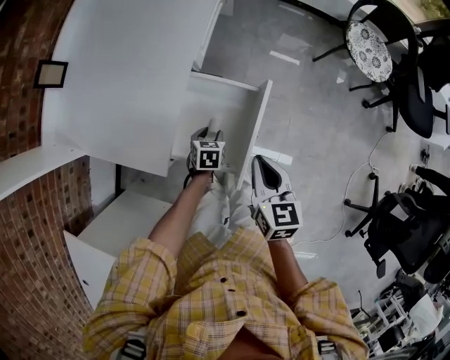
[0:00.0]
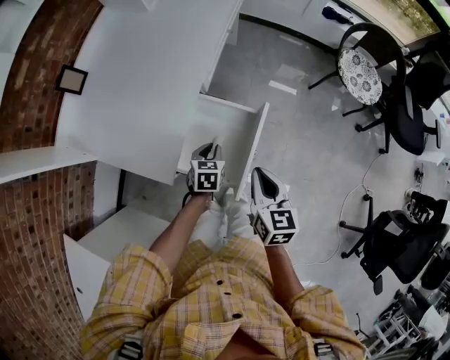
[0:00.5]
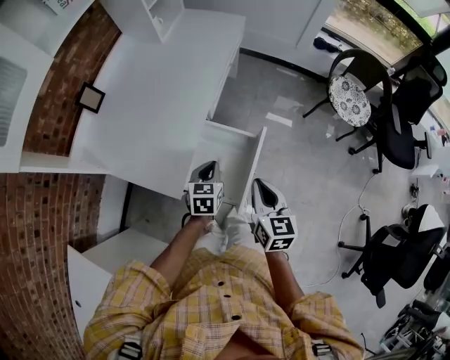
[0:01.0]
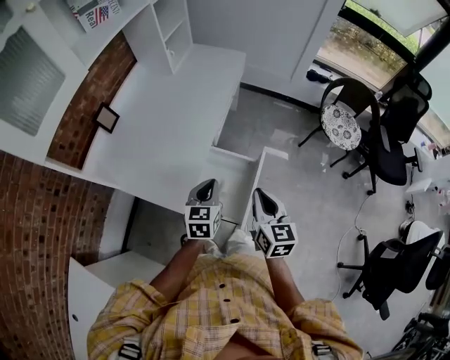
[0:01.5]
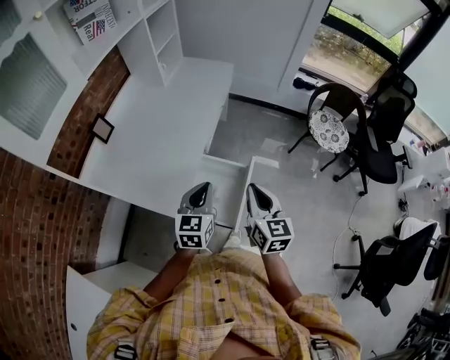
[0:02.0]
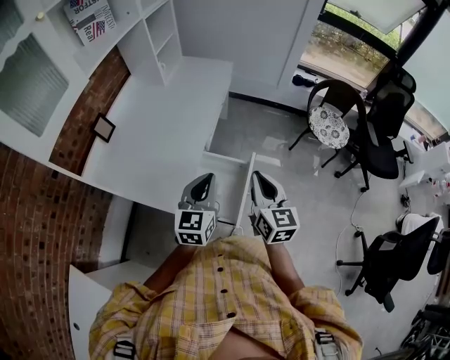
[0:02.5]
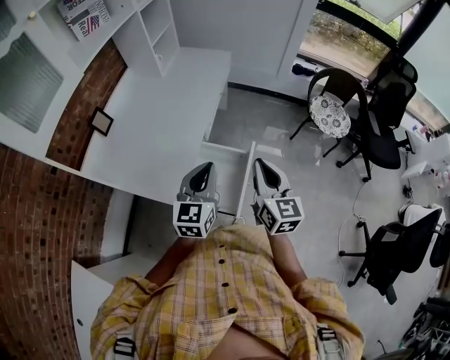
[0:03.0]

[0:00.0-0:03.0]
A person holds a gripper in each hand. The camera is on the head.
0:00.0 to 0:01.5: The right gripper moves upward, about 15 cm; the left gripper moves upward, roughly 35 cm, tips its fingers upward by roughly 30 degrees, and closes up.
0:01.5 to 0:03.0: The right gripper travels upward by some 10 cm. Meanwhile the left gripper is displaced upward by roughly 10 cm.

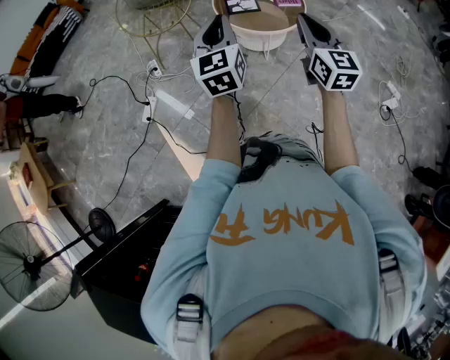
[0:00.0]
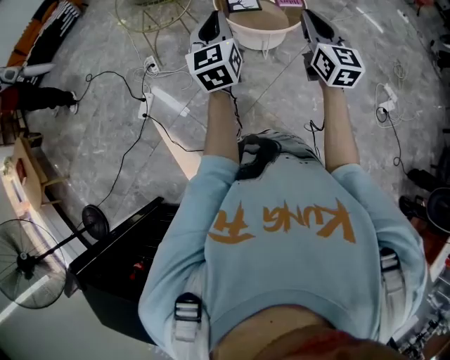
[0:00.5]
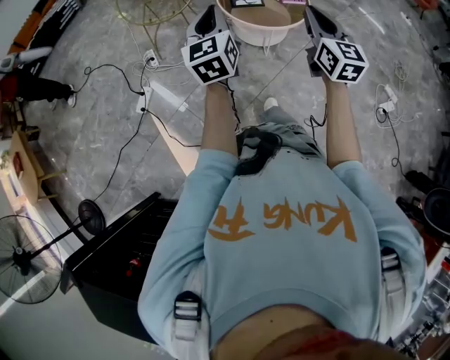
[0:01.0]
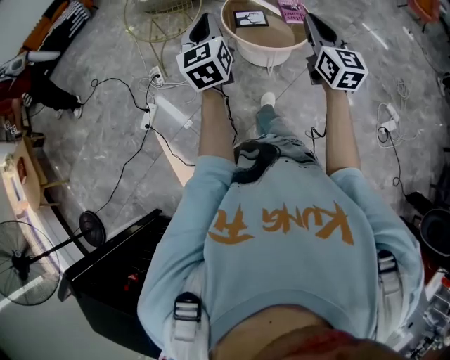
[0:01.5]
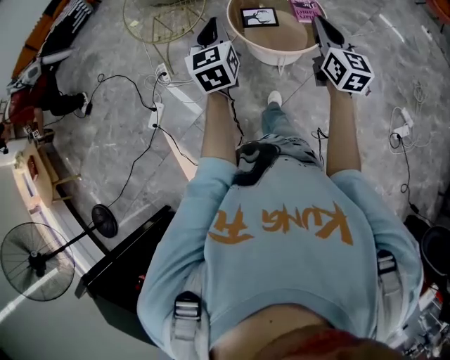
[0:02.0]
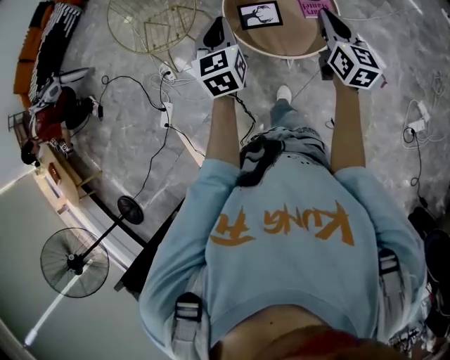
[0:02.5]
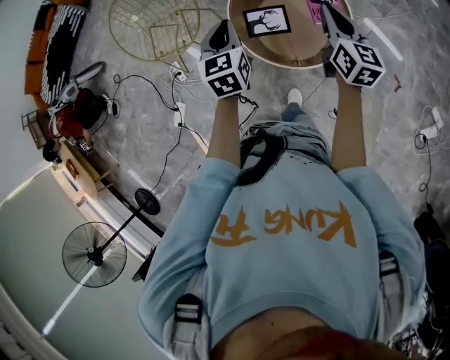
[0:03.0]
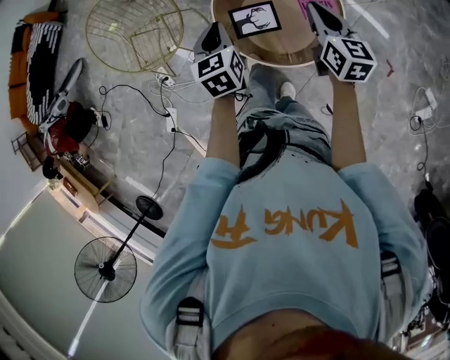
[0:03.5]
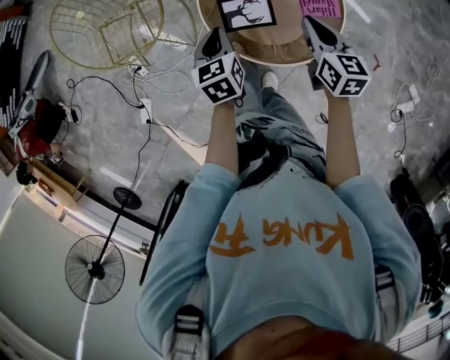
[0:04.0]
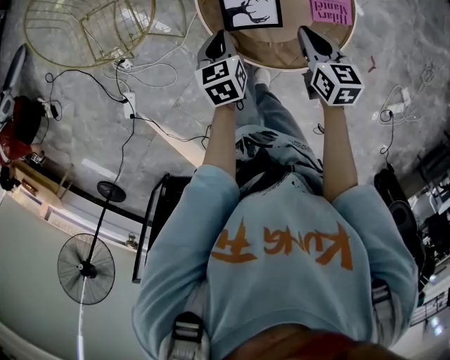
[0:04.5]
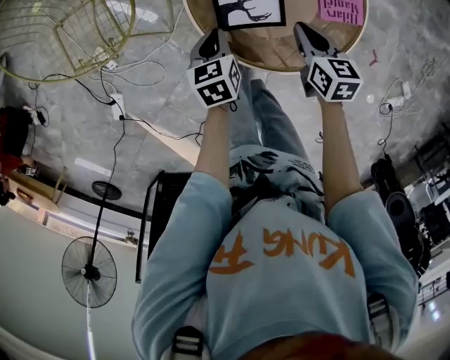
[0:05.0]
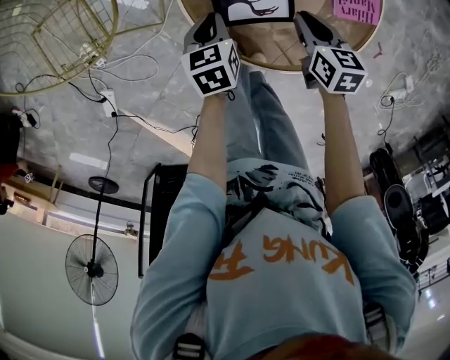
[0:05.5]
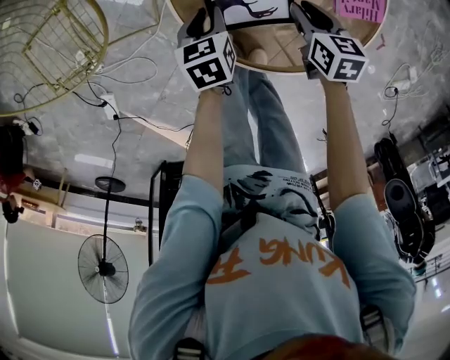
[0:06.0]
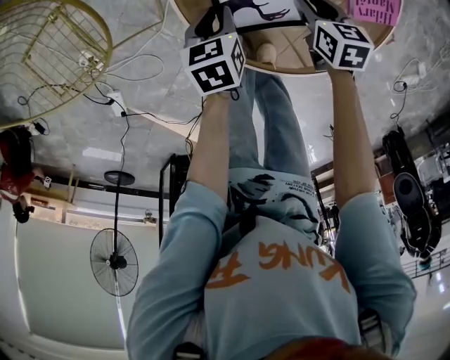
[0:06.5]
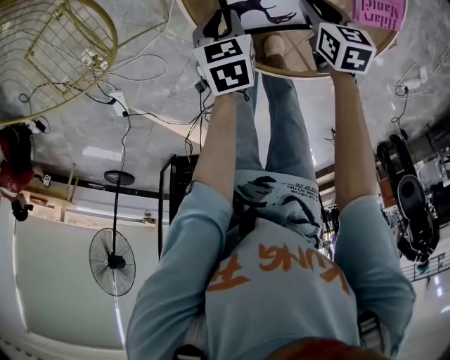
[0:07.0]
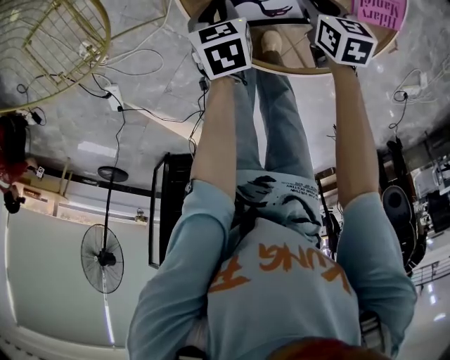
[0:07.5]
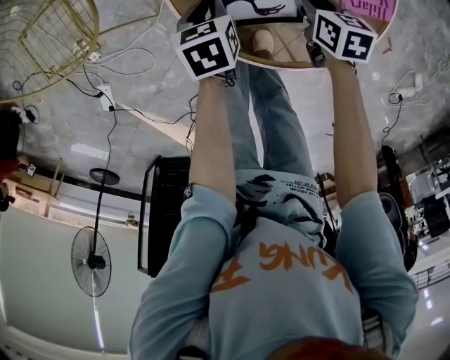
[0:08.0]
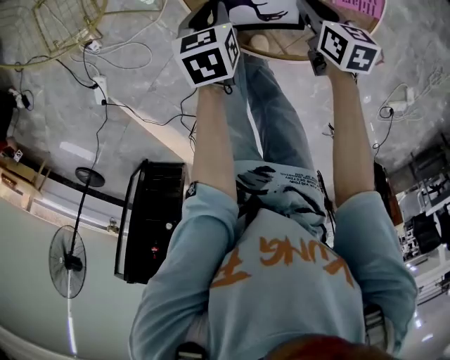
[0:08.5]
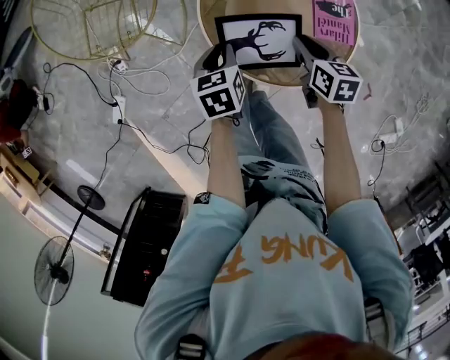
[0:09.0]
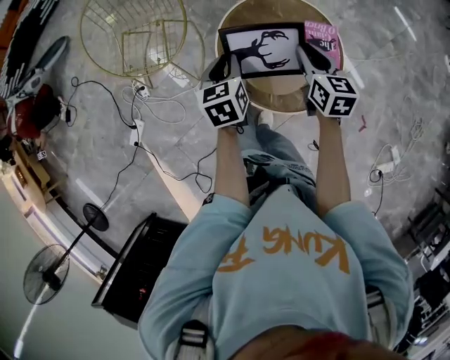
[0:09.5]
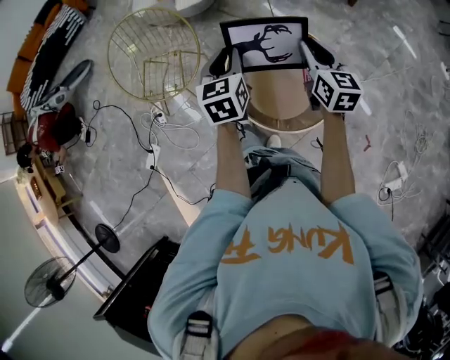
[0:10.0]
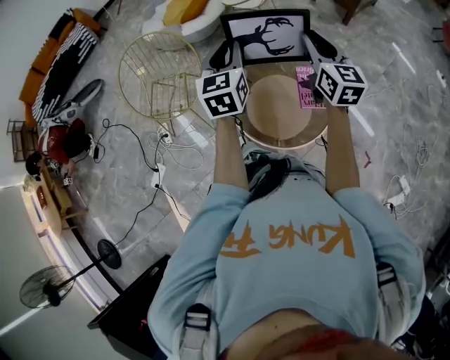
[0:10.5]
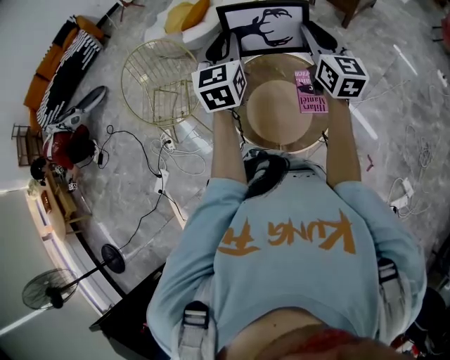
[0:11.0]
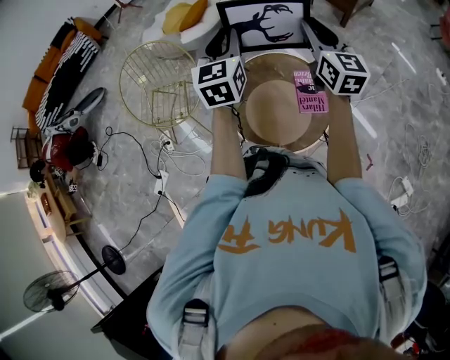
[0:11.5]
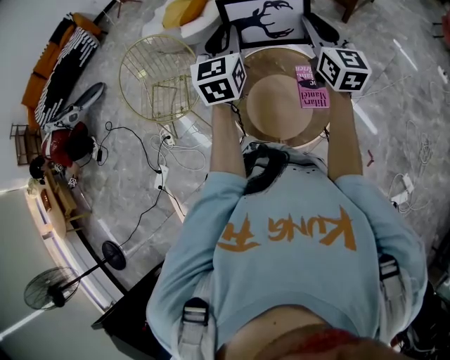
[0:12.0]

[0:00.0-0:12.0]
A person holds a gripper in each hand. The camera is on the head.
0:00.0 to 0:02.0: Both grippers move forward, approximately 15 cm.
0:02.0 to 0:04.0: Both grippers move forward and downward, approximately 35 cm. The right gripper swivels some 30 degrees, while the left gripper changes its angle by approximately 30 degrees.
0:04.0 to 0:06.0: The two grippers go roughly 25 cm downward. The left gripper rotates some 20 degrees. Meanwhile the right gripper changes its angle by approximately 30 degrees, and opens.
0:06.0 to 0:08.0: The grippers make only small movements.
0:08.0 to 0:10.0: Both grippers move upward, roughly 40 cm. The left gripper tilts its fingers approximately 40 degrees upward. The right gripper tips its fingers upward by approximately 40 degrees.
0:10.0 to 0:12.0: The two grippers go some 15 cm upward and to the right.

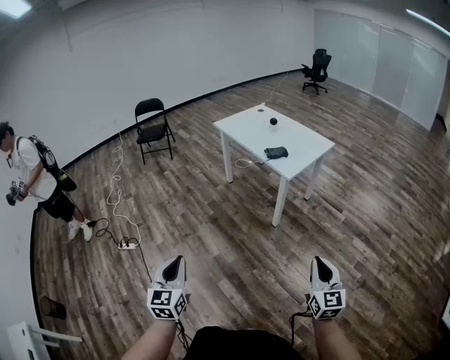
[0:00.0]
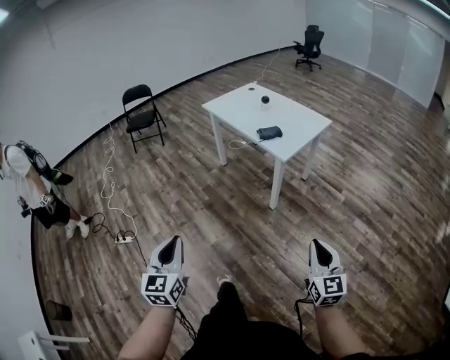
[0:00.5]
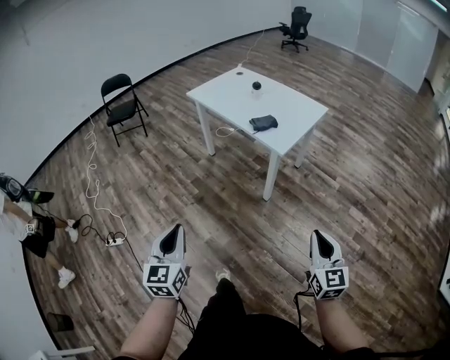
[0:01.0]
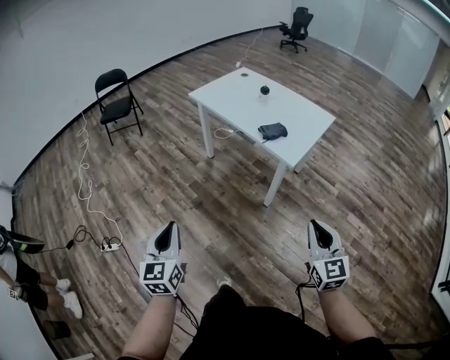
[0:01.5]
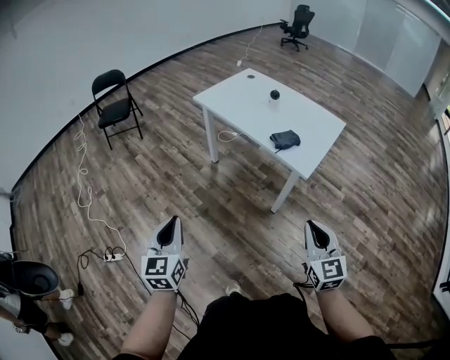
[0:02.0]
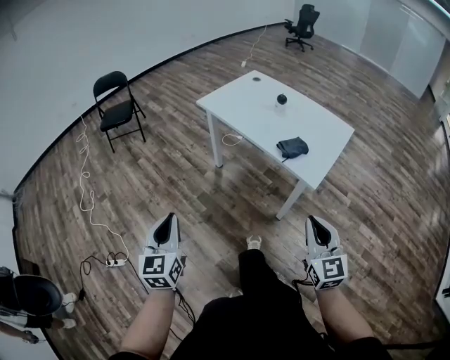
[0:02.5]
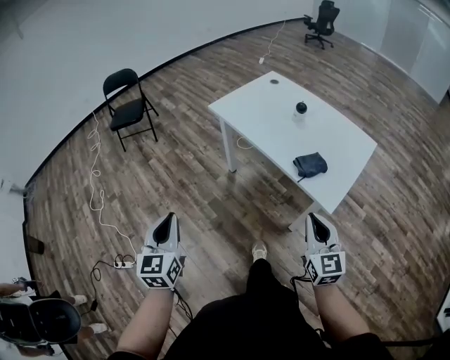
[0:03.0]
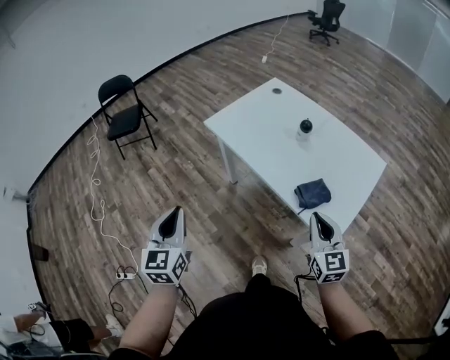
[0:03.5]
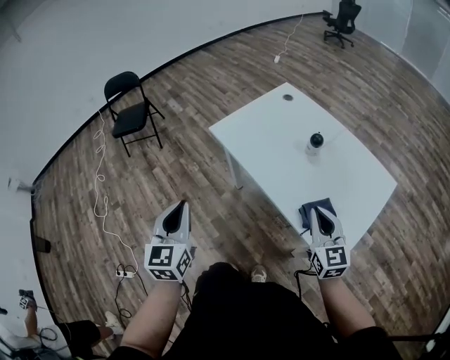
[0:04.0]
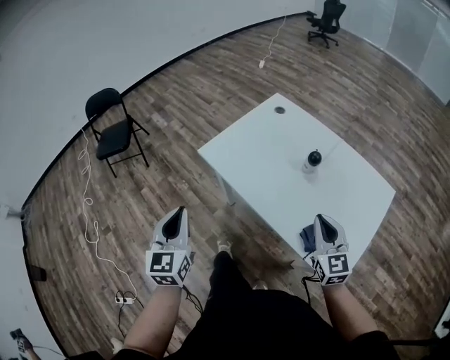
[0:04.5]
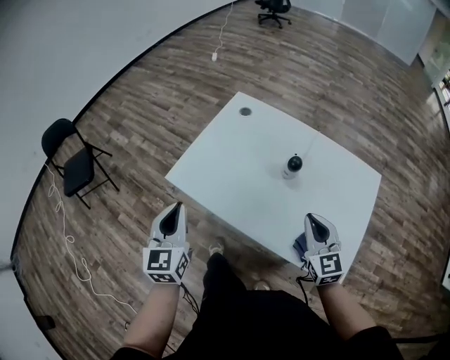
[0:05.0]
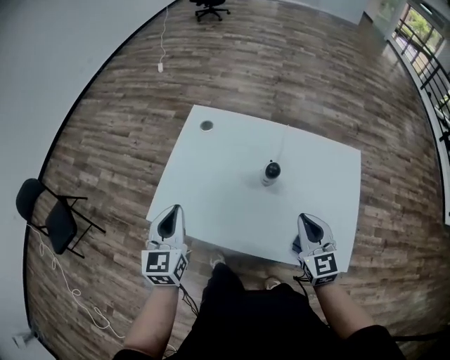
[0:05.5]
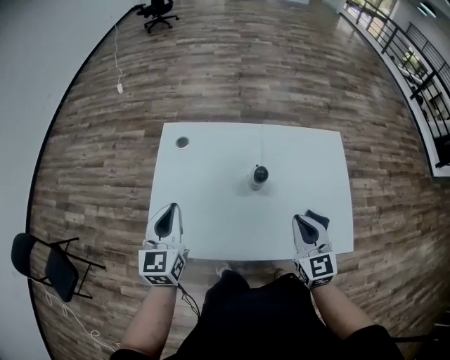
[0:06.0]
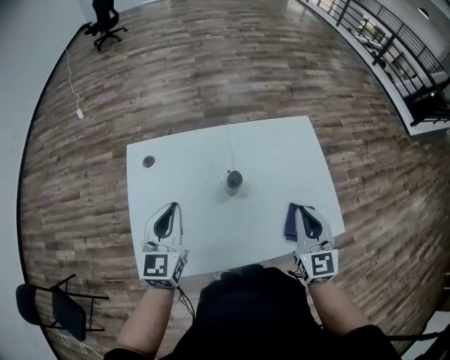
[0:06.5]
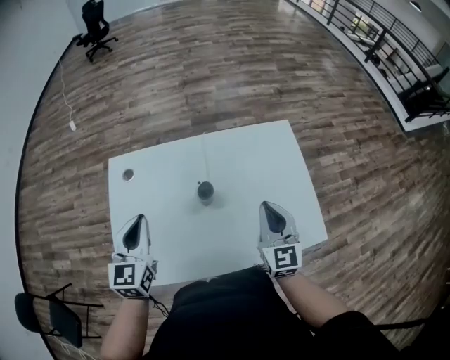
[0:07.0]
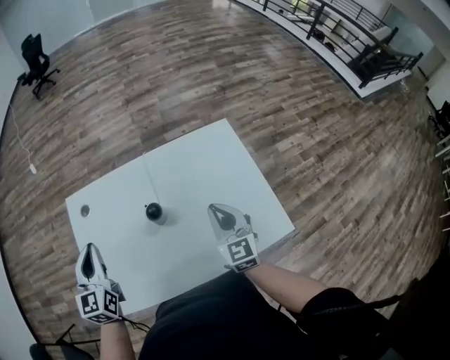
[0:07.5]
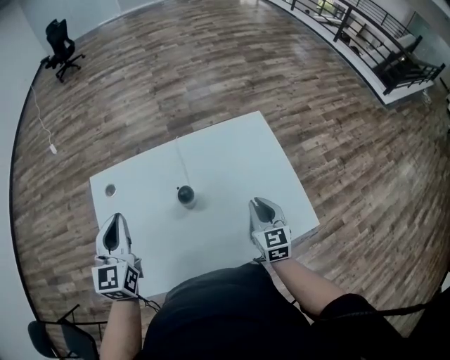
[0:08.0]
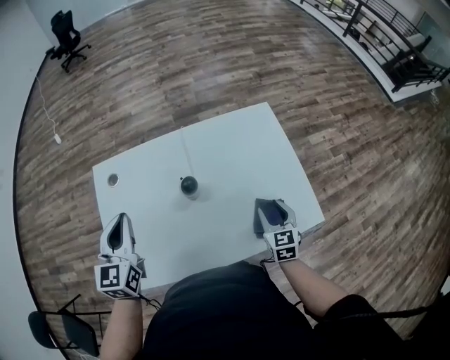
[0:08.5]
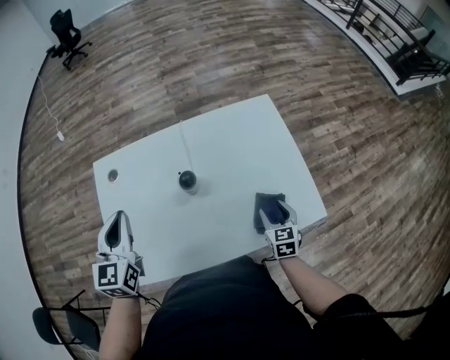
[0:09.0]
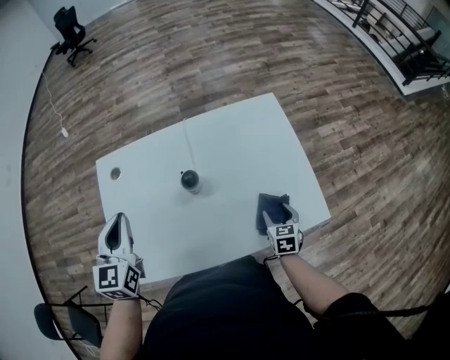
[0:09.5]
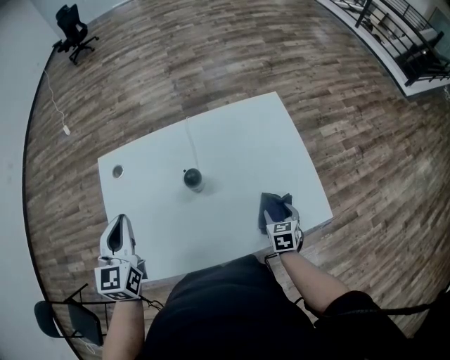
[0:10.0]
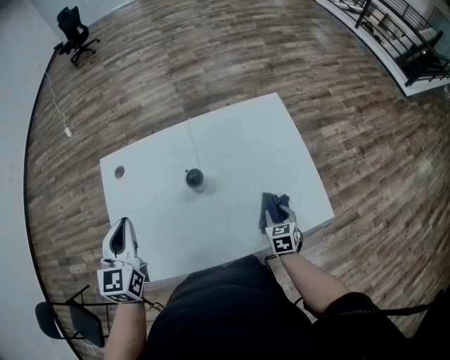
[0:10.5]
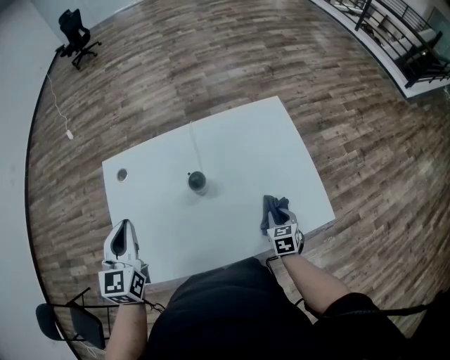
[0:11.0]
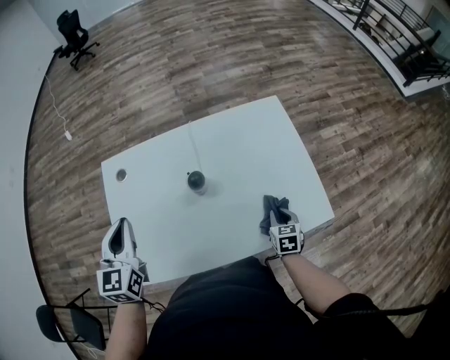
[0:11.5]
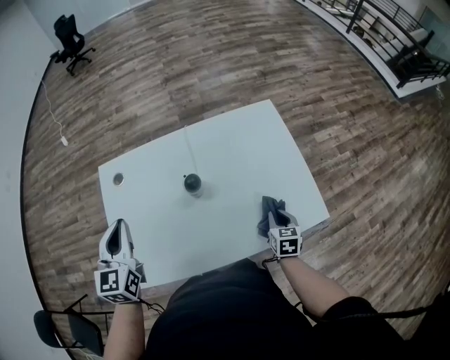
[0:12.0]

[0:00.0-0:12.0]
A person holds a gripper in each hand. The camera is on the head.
0:00.0 to 0:02.0: The left gripper heads forward, covering some 30 cm, while the right gripper moves forward and to the left, some 30 cm.
0:02.0 to 0:04.0: Both grippers move forward, some 35 cm.
0:04.0 to 0:06.0: The left gripper changes place by roughly 40 cm, and turns by some 50 degrees, while the right gripper shifts by some 10 cm, and turns by about 40 degrees.
0:06.0 to 0:08.0: The left gripper moves forward, some 10 cm; the right gripper moves to the right and downward, some 10 cm, and changes its angle by some 20 degrees.
0:08.0 to 0:10.0: The right gripper moves downward, some 15 cm, rotates approximately 30 degrees, and opens its fingers.
0:10.0 to 0:12.0: The right gripper closes up.
